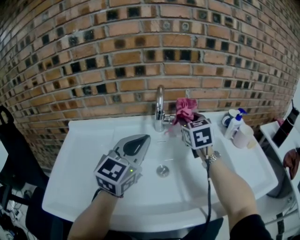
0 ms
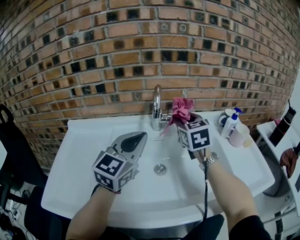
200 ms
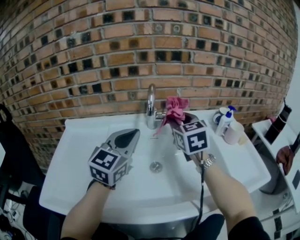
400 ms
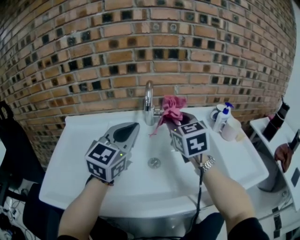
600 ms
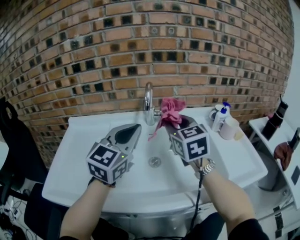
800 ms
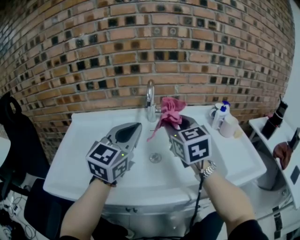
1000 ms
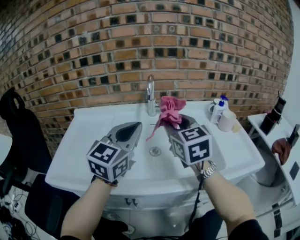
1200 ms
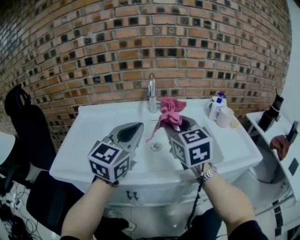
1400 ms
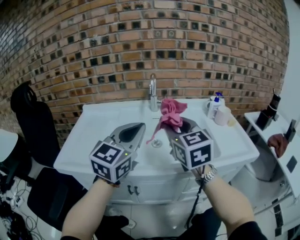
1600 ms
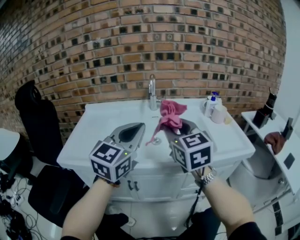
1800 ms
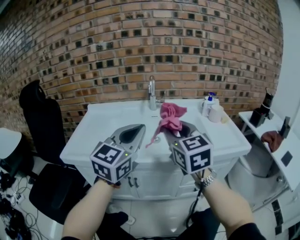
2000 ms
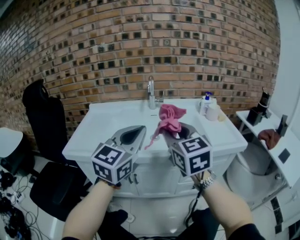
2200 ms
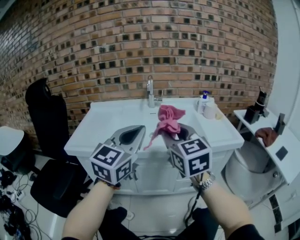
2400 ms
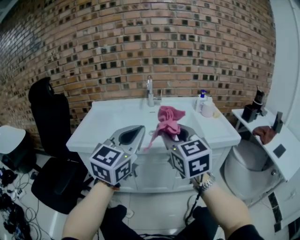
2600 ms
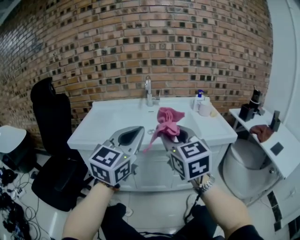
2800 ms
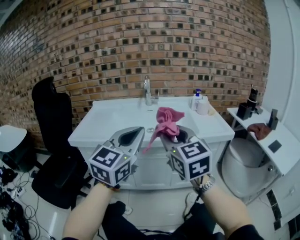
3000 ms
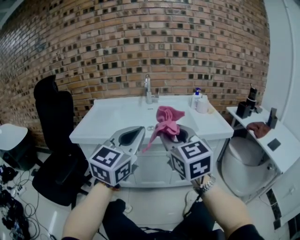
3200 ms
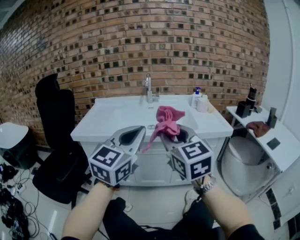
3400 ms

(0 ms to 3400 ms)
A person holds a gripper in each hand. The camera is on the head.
0 ms - 1600 ms: The left gripper heads backward, covering about 20 cm. Meanwhile the right gripper shifts roughly 30 cm backward.
1600 ms - 3400 ms: The grippers both shift backward by about 30 cm.

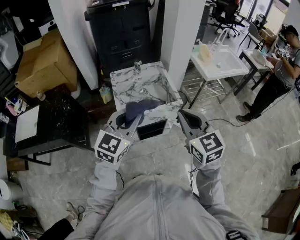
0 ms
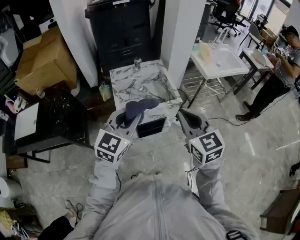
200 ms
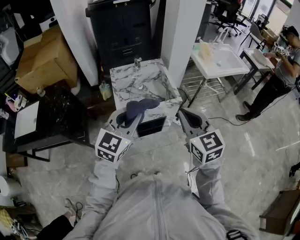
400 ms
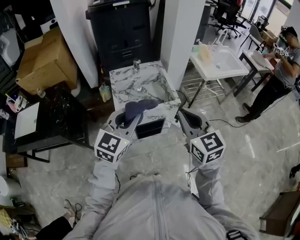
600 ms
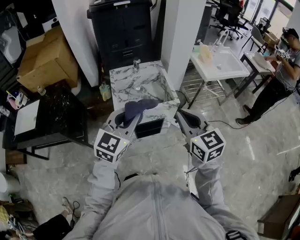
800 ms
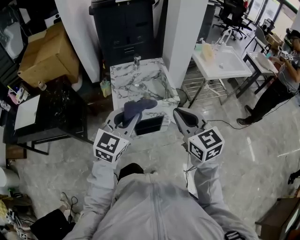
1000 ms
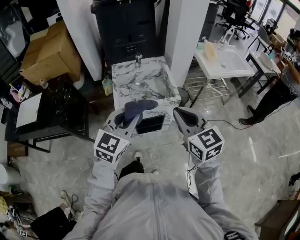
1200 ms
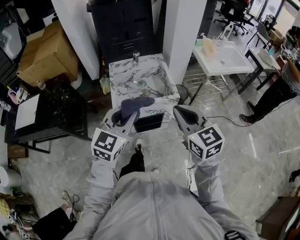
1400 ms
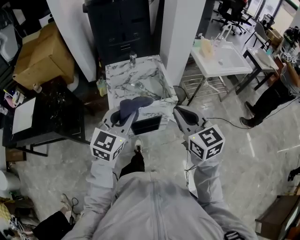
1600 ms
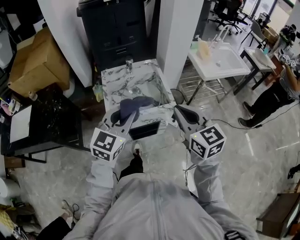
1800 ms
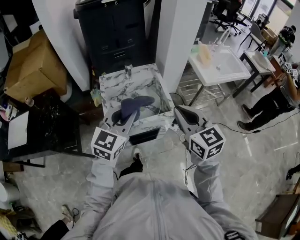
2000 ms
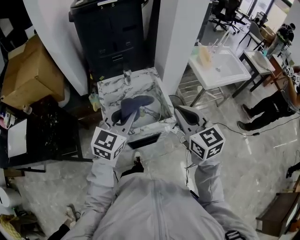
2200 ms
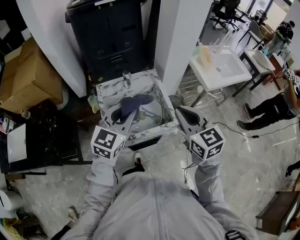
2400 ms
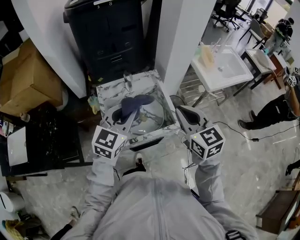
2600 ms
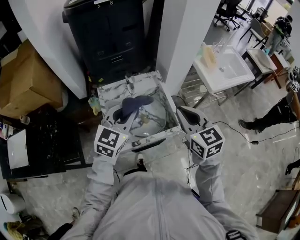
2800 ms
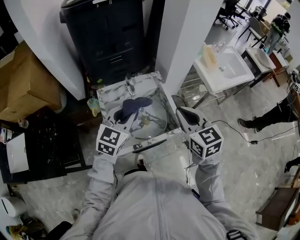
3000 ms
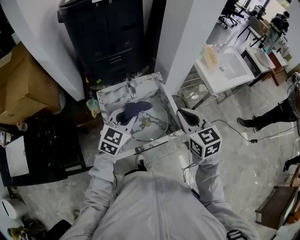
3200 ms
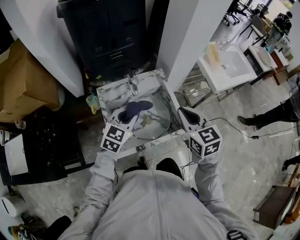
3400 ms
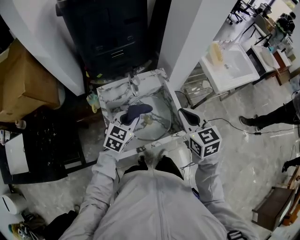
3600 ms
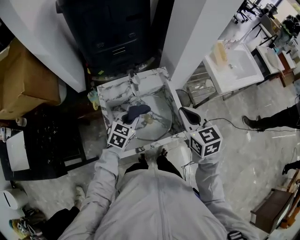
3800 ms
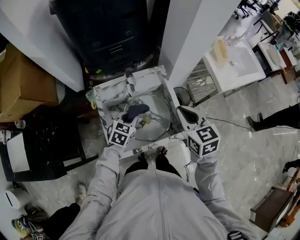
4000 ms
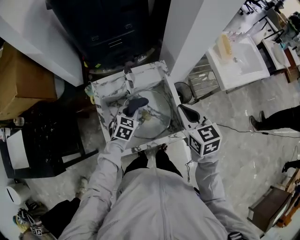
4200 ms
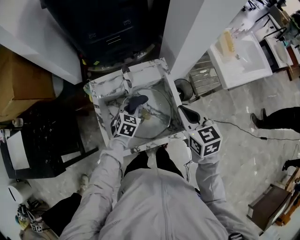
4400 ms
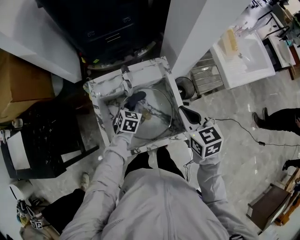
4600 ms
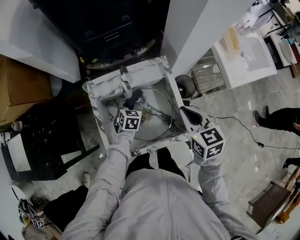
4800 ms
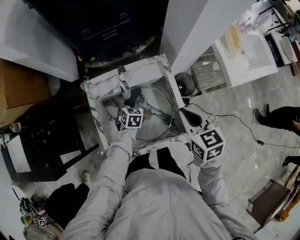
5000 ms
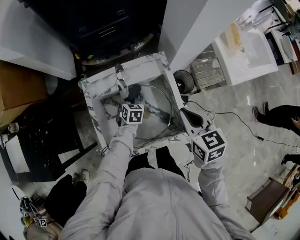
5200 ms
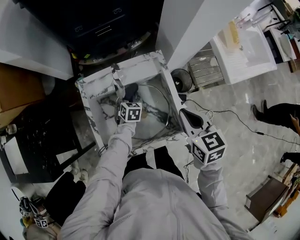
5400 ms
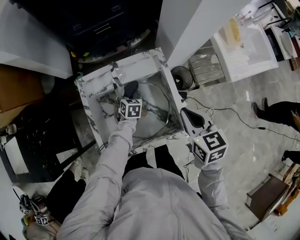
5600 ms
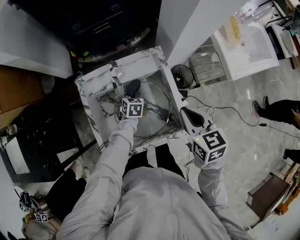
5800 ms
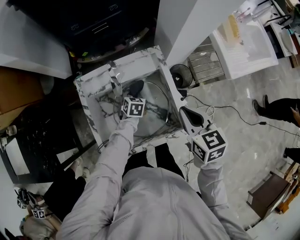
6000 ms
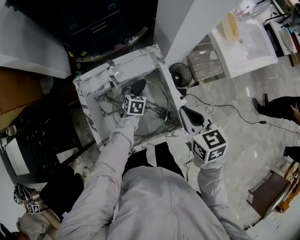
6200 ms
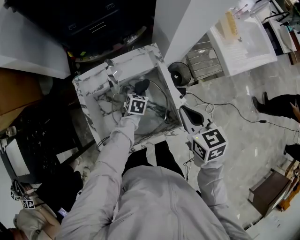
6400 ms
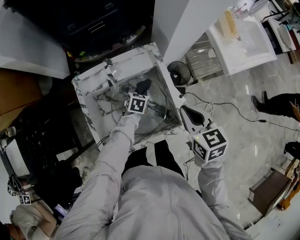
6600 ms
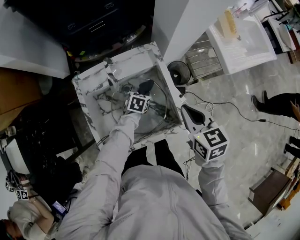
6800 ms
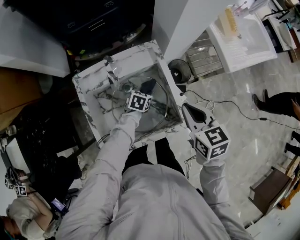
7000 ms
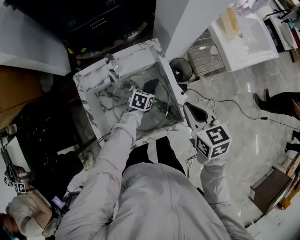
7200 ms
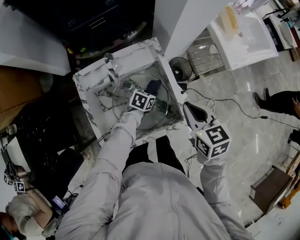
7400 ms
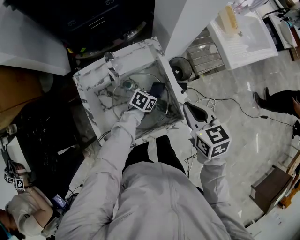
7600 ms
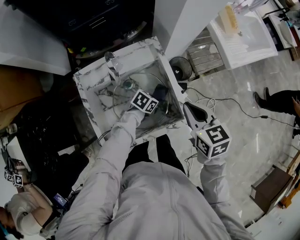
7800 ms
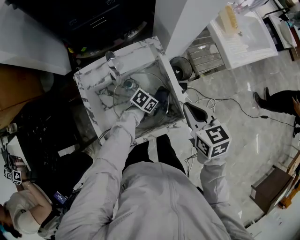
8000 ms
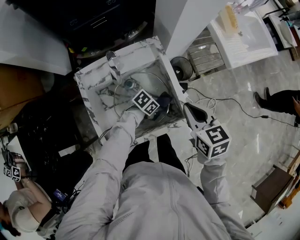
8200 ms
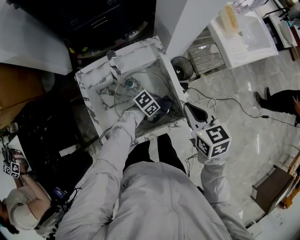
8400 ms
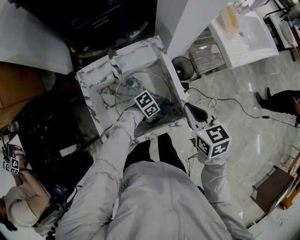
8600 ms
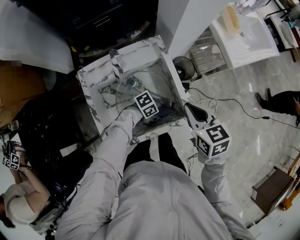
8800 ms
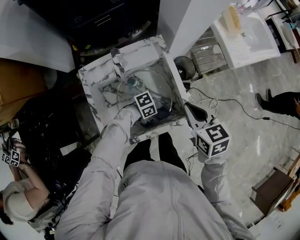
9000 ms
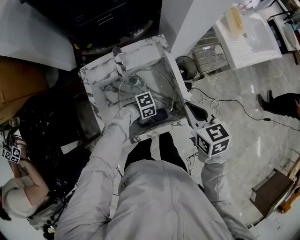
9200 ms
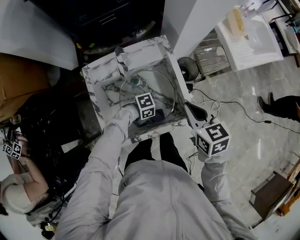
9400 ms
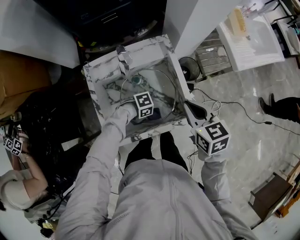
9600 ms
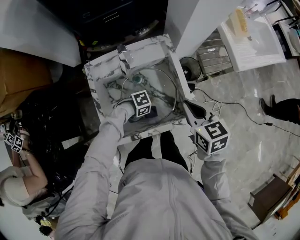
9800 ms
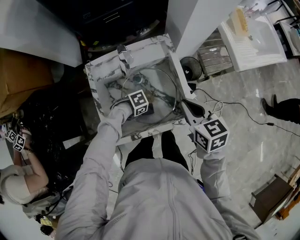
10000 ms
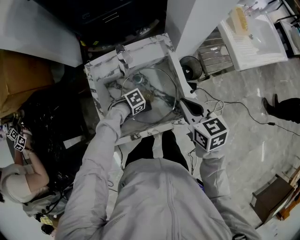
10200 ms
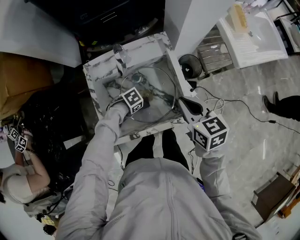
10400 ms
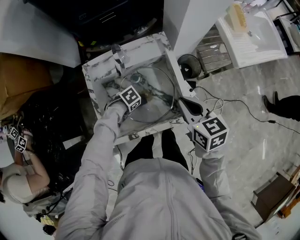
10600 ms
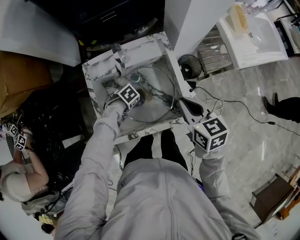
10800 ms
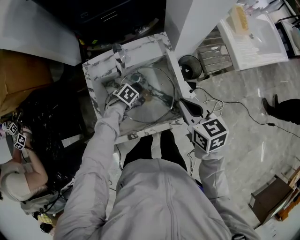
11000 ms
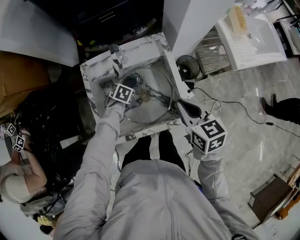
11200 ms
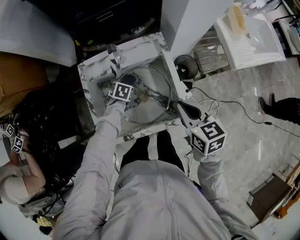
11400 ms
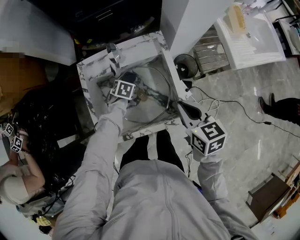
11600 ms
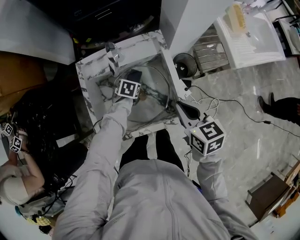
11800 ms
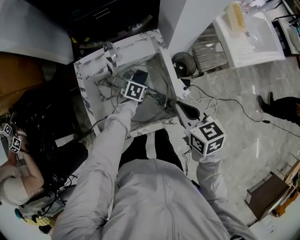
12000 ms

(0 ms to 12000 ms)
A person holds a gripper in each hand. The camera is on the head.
0 ms - 1600 ms: The grippers make only small movements.
1600 ms - 3000 ms: Both grippers move forward, roughly 25 cm.
3000 ms - 4400 ms: The left gripper travels downward by about 25 cm, and changes its angle by some 30 degrees. Meanwhile the right gripper is displaced downward and forward by approximately 15 cm.
4400 ms - 6000 ms: The right gripper moves some 5 cm; the left gripper moves downward and forward, about 15 cm.
6000 ms - 7600 ms: The left gripper ends up some 15 cm from where it was, and turns by some 40 degrees.
7600 ms - 9000 ms: The left gripper ends up about 15 cm from where it was, and swivels about 40 degrees.
9000 ms - 10400 ms: The left gripper changes place by some 15 cm, and swivels about 30 degrees.
10400 ms - 12000 ms: The left gripper moves some 15 cm, and turns by some 40 degrees.

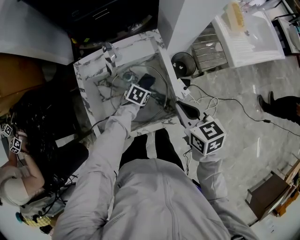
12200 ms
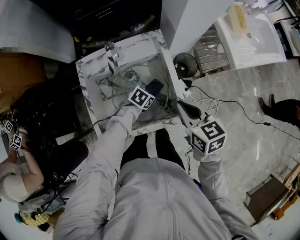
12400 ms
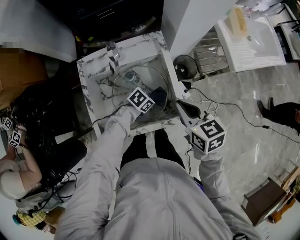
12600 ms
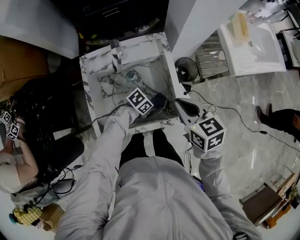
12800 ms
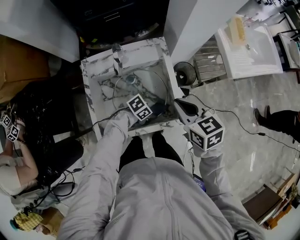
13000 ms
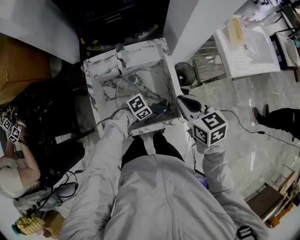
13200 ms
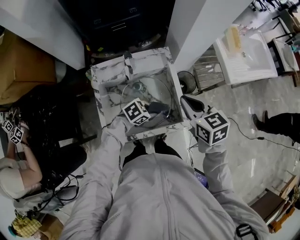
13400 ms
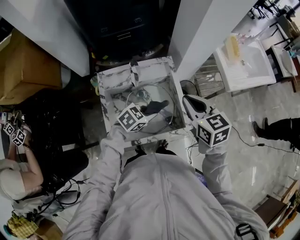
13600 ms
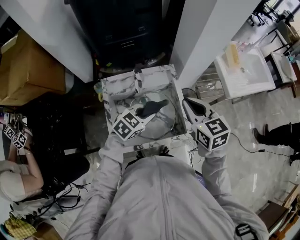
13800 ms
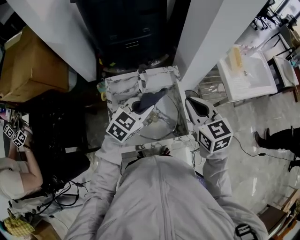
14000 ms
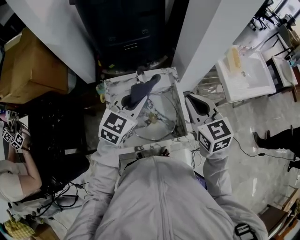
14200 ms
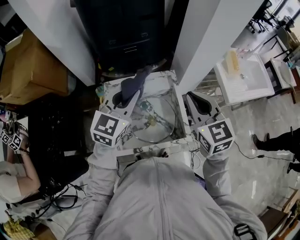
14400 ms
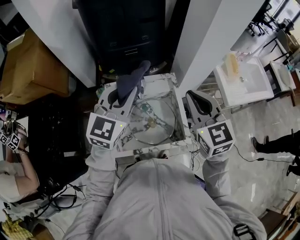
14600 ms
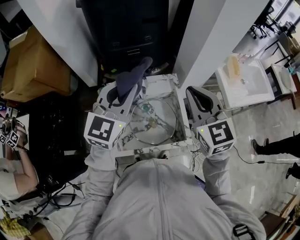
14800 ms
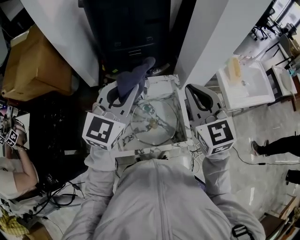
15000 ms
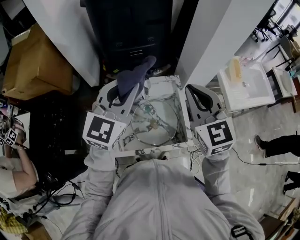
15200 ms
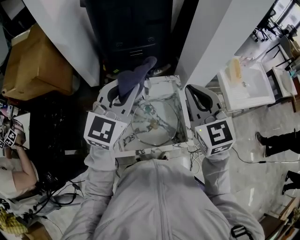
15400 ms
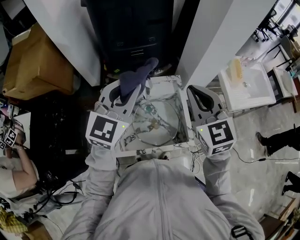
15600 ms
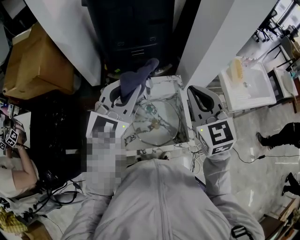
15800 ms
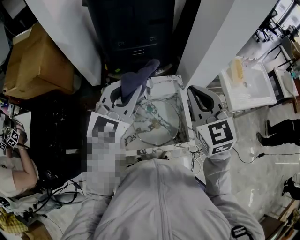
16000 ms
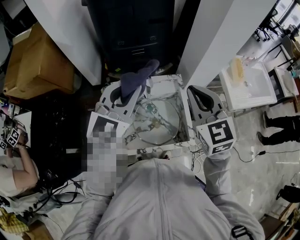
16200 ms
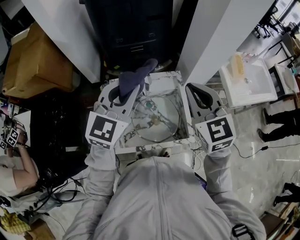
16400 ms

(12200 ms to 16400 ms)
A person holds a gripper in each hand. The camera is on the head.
12200 ms - 13600 ms: The left gripper moves upward, about 20 cm, and rotates roughly 30 degrees; the right gripper travels upward by some 10 cm.
13600 ms - 15000 ms: The left gripper travels upward by about 35 cm, and points its fingers approximately 40 degrees further upward. The right gripper shifts roughly 15 cm upward, and turns by roughly 30 degrees.
15000 ms - 16400 ms: The grippers stay close to where they were, moving slightly.

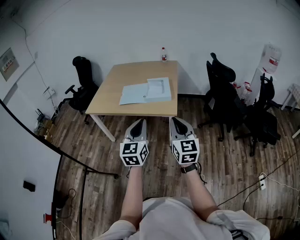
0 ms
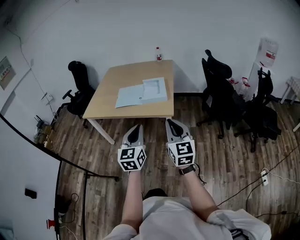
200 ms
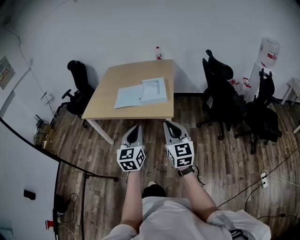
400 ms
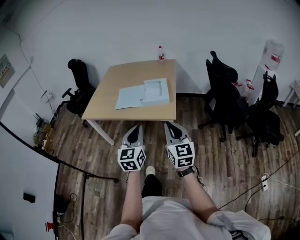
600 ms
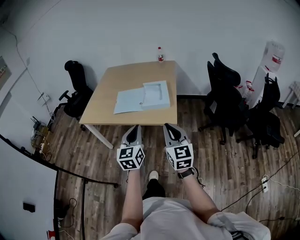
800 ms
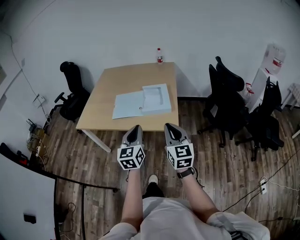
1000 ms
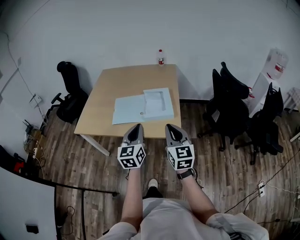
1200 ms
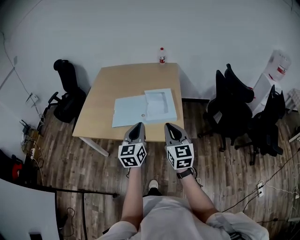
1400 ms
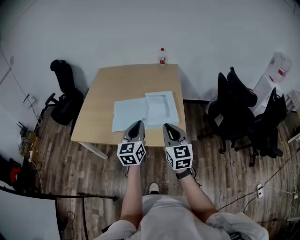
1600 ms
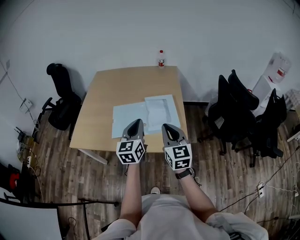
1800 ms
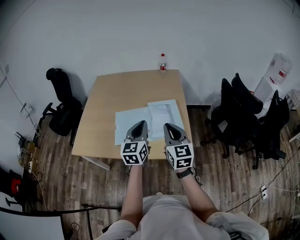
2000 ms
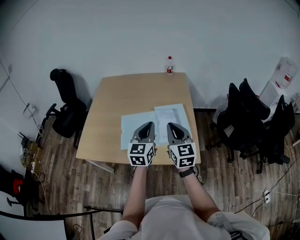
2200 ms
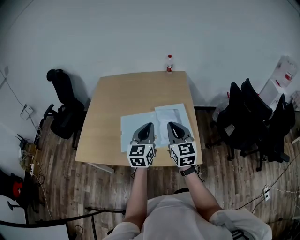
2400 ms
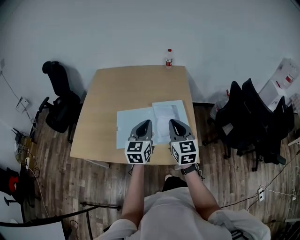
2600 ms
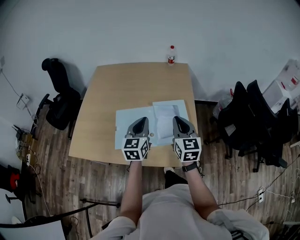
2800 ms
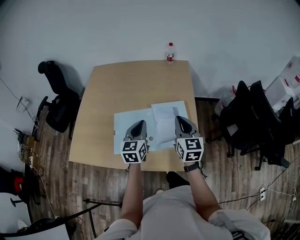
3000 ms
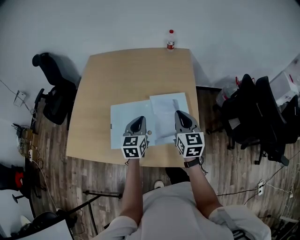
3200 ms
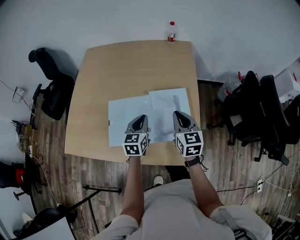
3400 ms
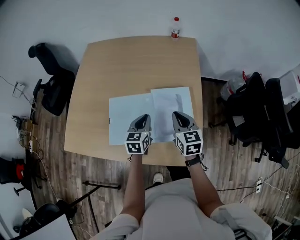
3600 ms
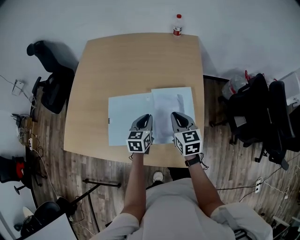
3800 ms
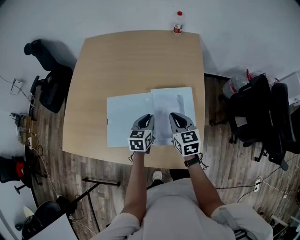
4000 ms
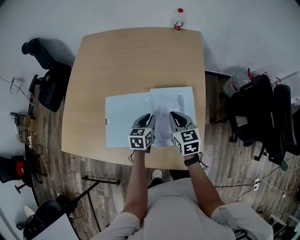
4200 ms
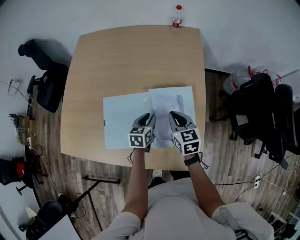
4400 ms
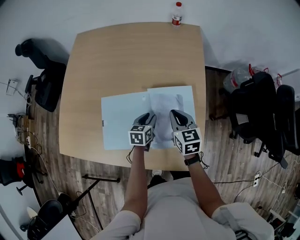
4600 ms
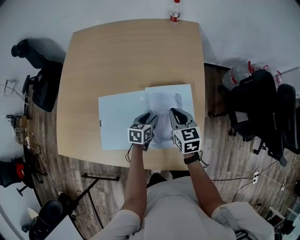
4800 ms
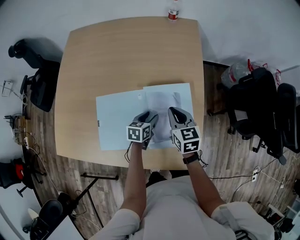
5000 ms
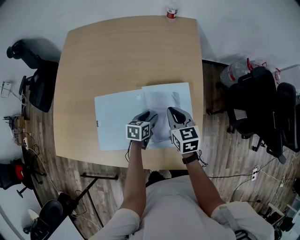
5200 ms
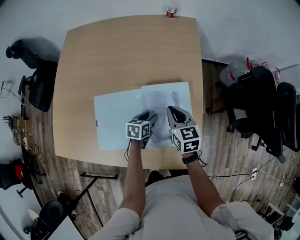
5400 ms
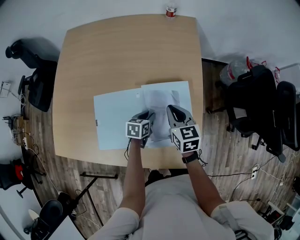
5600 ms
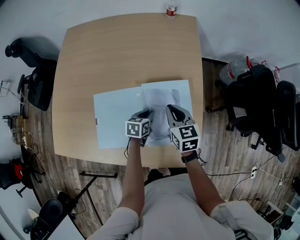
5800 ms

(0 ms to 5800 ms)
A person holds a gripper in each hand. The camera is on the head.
0 ms - 1400 ms: The grippers both shift forward by approximately 30 cm.
1400 ms - 2800 ms: Both grippers move forward, about 25 cm.
2800 ms - 4400 ms: Both grippers travel together downward and forward, about 25 cm. The right gripper rotates roughly 30 degrees. The left gripper rotates approximately 30 degrees.
4400 ms - 5800 ms: The left gripper heads downward, covering roughly 5 cm, and opens, then closes again.
